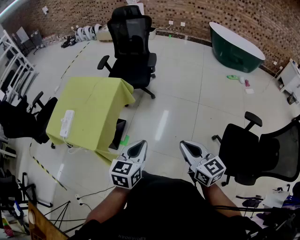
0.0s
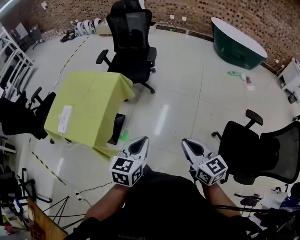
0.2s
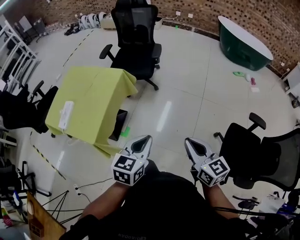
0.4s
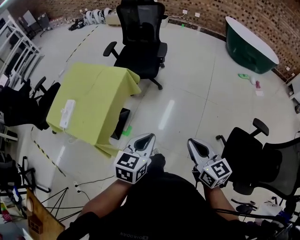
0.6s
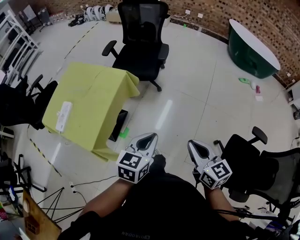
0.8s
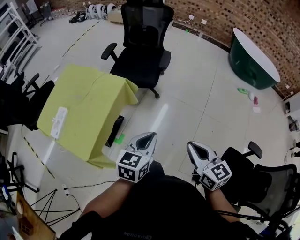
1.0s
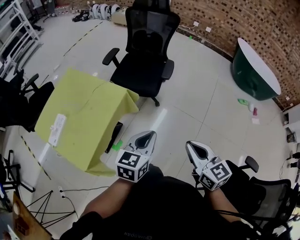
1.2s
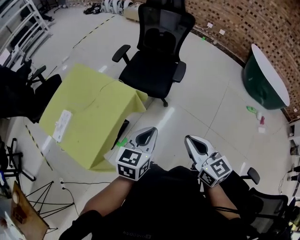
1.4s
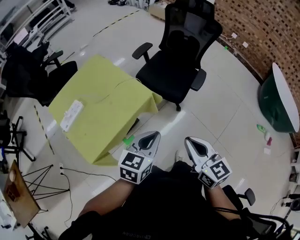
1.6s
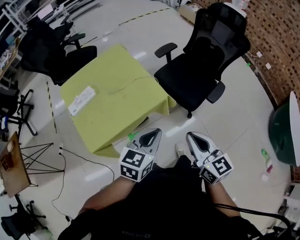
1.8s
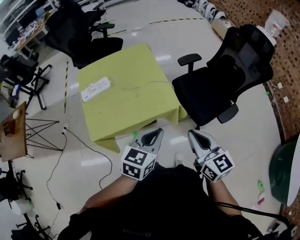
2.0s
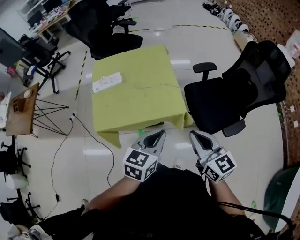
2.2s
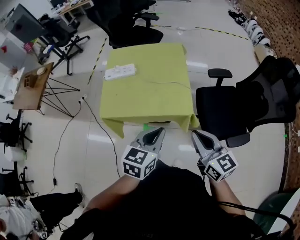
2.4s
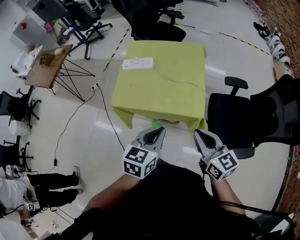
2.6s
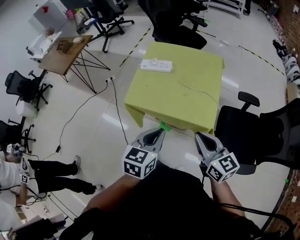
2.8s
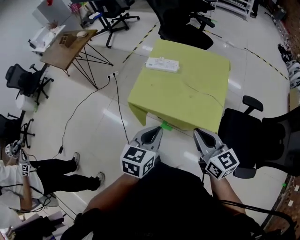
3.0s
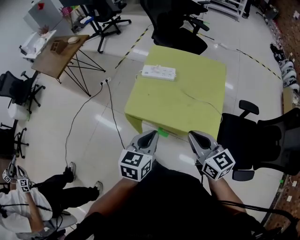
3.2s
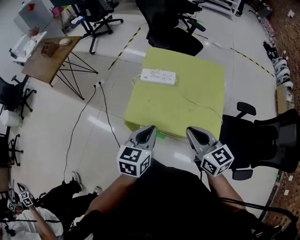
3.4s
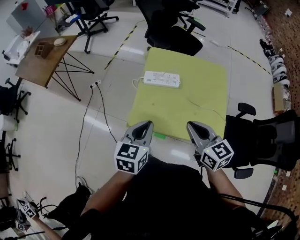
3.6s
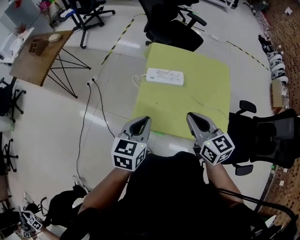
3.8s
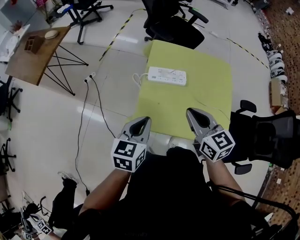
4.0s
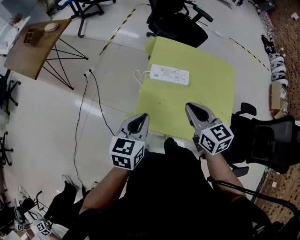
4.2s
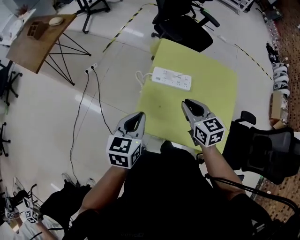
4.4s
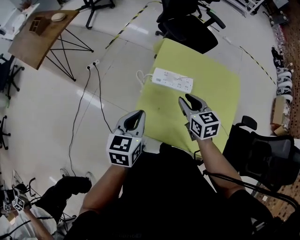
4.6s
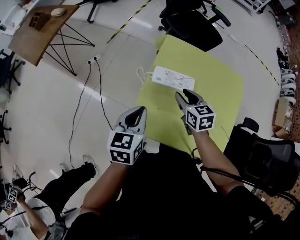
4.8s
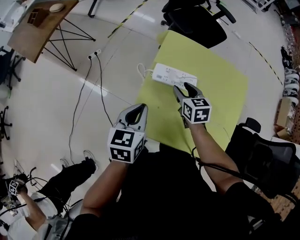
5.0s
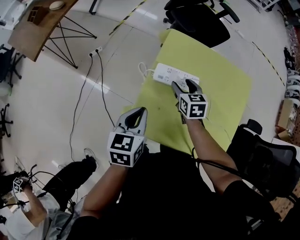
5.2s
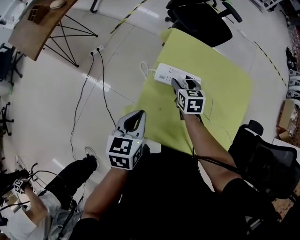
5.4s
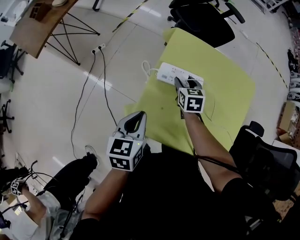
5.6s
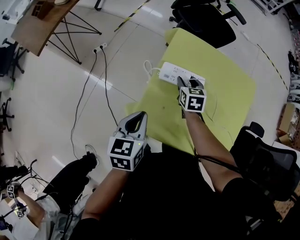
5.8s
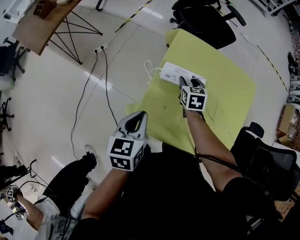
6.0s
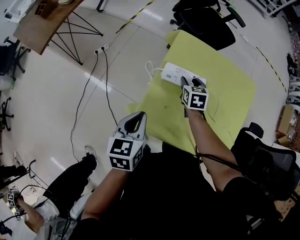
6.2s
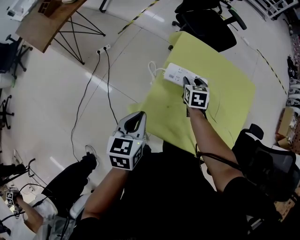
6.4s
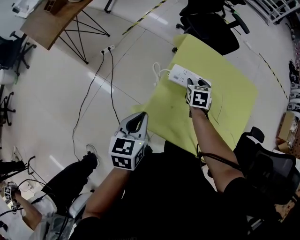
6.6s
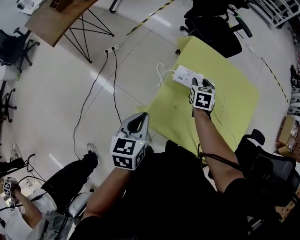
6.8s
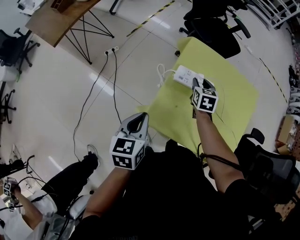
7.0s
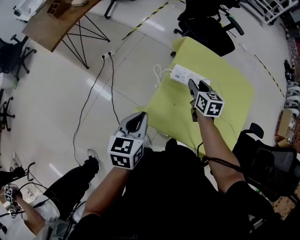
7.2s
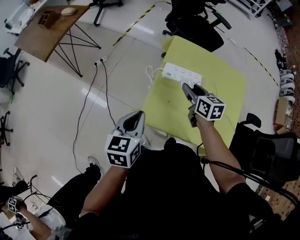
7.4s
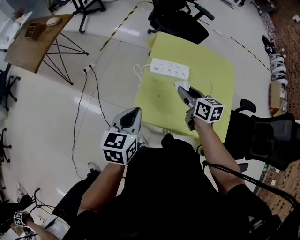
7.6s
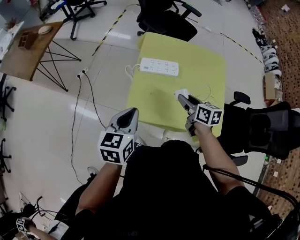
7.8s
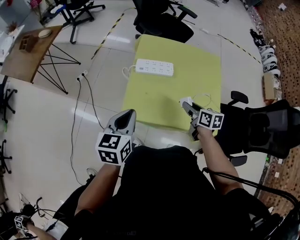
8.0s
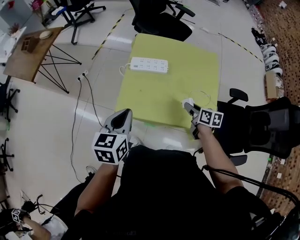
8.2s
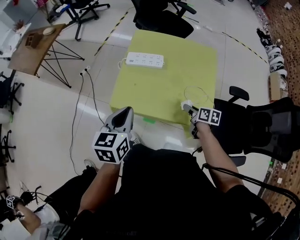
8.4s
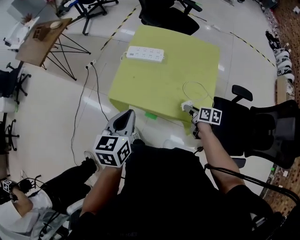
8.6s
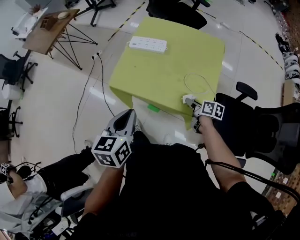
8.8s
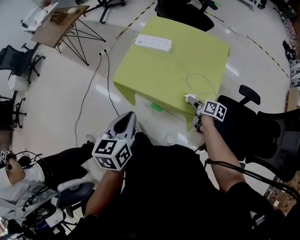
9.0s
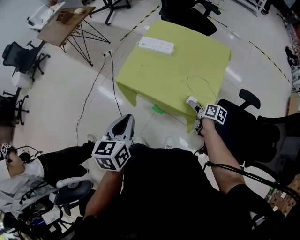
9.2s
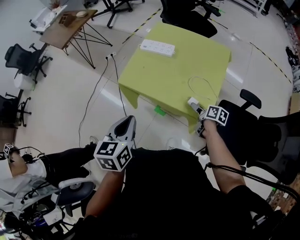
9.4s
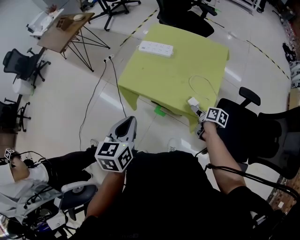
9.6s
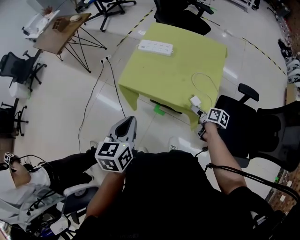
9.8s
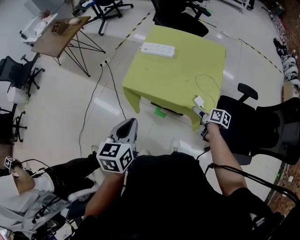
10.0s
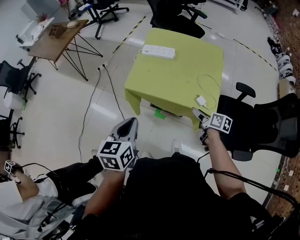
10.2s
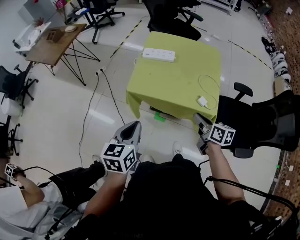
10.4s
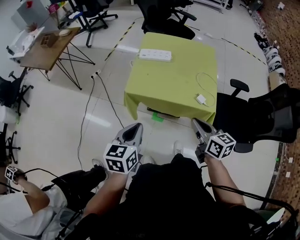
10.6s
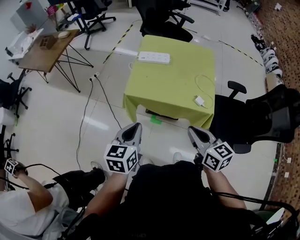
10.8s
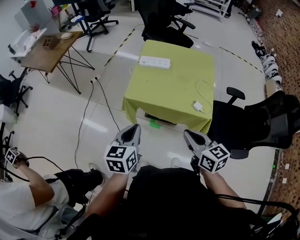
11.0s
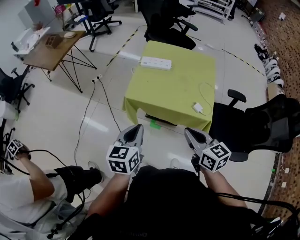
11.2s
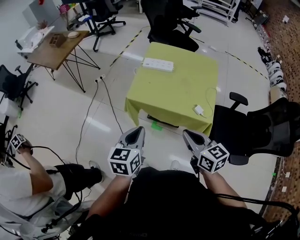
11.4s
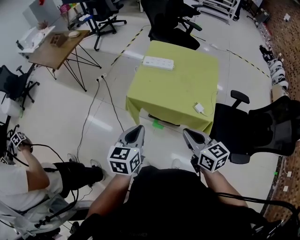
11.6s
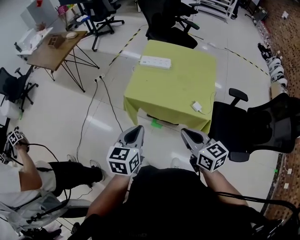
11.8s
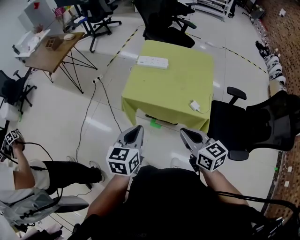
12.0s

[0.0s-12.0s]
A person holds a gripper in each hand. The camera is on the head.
0.0s to 1.6s: The two grippers go about 40 cm forward. The right gripper rotates roughly 30 degrees.
1.6s to 3.0s: The left gripper moves roughly 15 cm, and changes its angle by approximately 70 degrees, while the right gripper ends up roughly 20 cm from where it was, and rotates roughly 70 degrees.
3.0s to 4.4s: The grippers both shift forward and to the left by some 35 cm. The right gripper turns by roughly 20 degrees.
4.4s to 6.0s: The right gripper goes some 20 cm downward and forward, and opens.
6.0s to 7.6s: The right gripper shifts some 20 cm backward and upward, and swivels roughly 30 degrees. Meanwhile the left gripper travels backward by some 5 cm.
7.6s to 9.0s: The right gripper shifts about 35 cm to the right, backward and downward, and turns by roughly 30 degrees. Meanwhile the left gripper is displaced backward and to the right by approximately 25 cm.
9.0s to 10.4s: The left gripper goes about 10 cm to the left. The right gripper shifts some 25 cm upward, to the left and backward, and closes.
10.4s to 12.0s: The right gripper heads upward, backward and to the left, covering roughly 15 cm, and changes its angle by approximately 30 degrees.

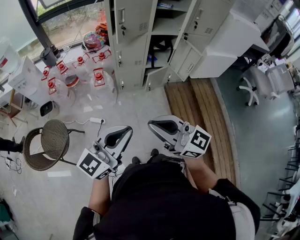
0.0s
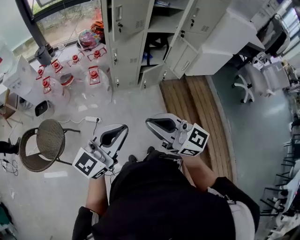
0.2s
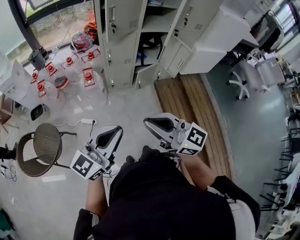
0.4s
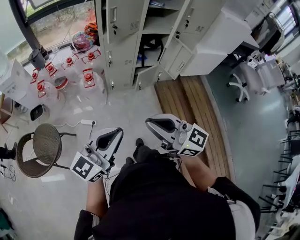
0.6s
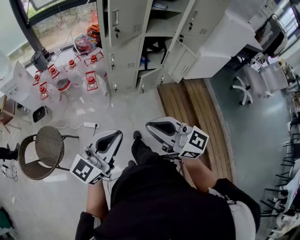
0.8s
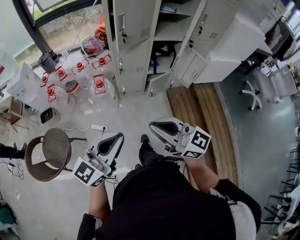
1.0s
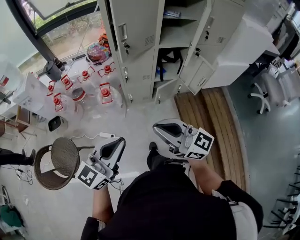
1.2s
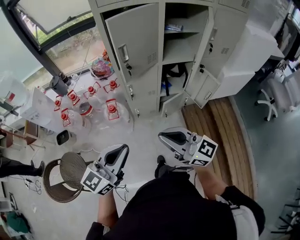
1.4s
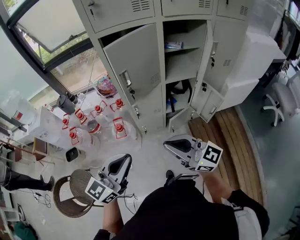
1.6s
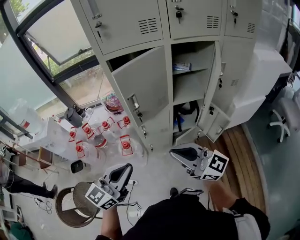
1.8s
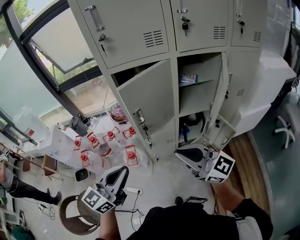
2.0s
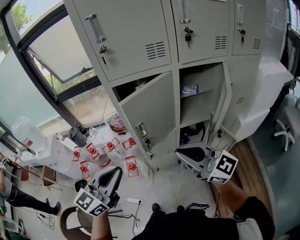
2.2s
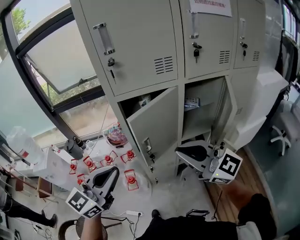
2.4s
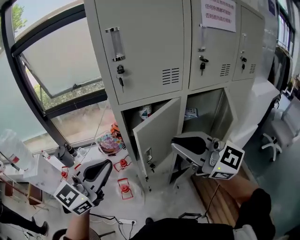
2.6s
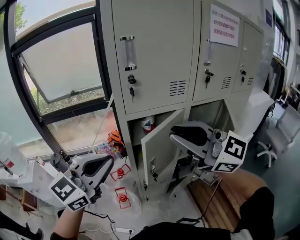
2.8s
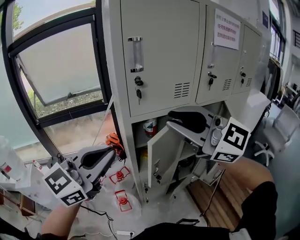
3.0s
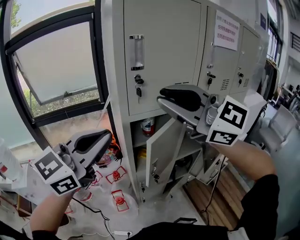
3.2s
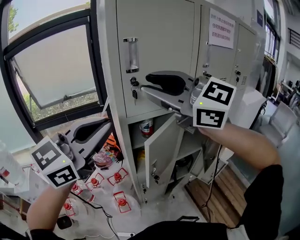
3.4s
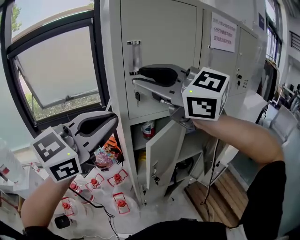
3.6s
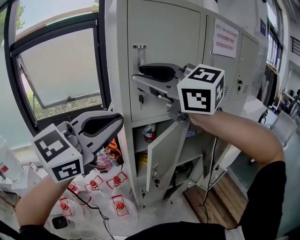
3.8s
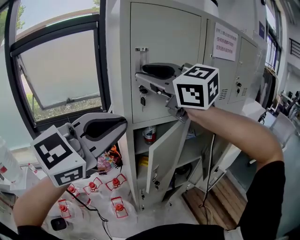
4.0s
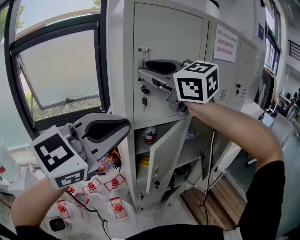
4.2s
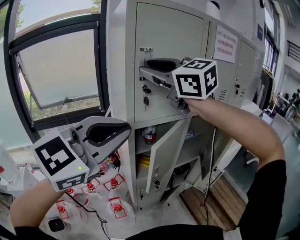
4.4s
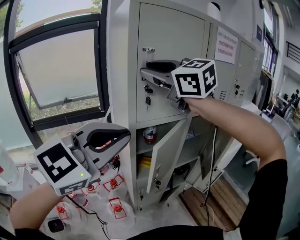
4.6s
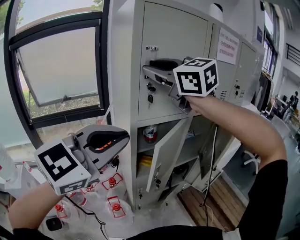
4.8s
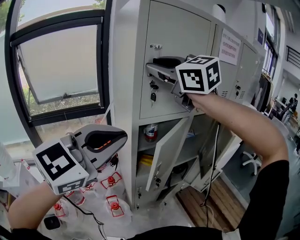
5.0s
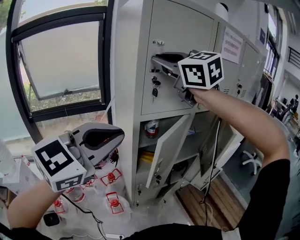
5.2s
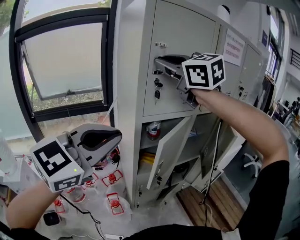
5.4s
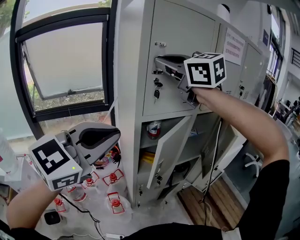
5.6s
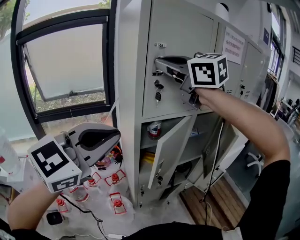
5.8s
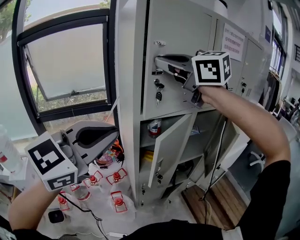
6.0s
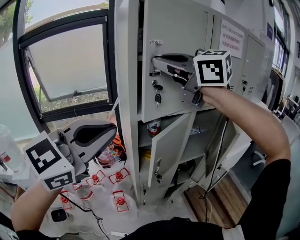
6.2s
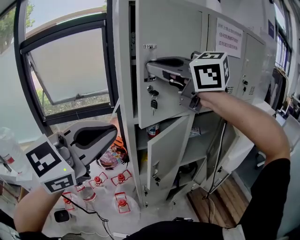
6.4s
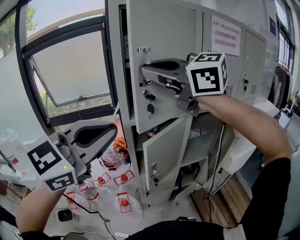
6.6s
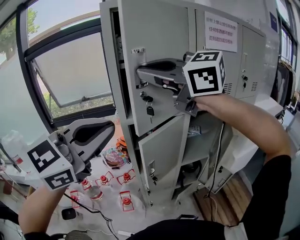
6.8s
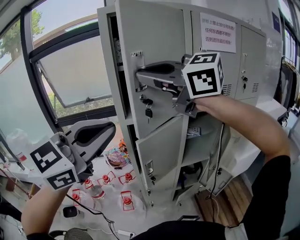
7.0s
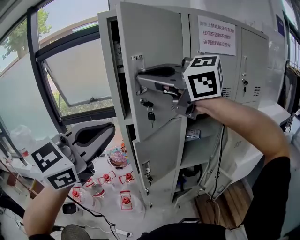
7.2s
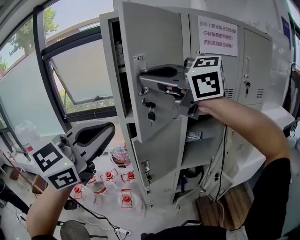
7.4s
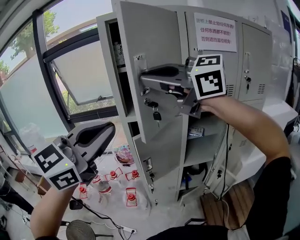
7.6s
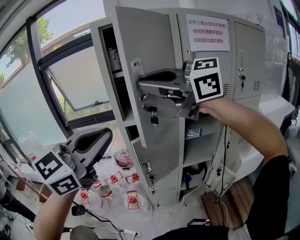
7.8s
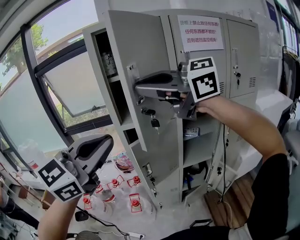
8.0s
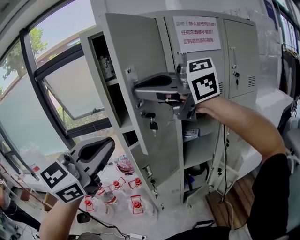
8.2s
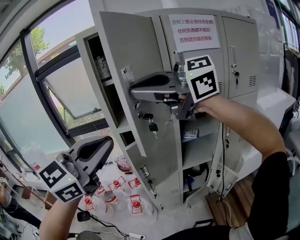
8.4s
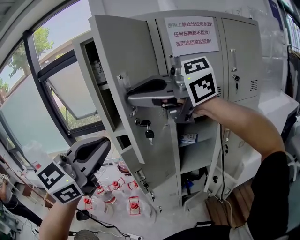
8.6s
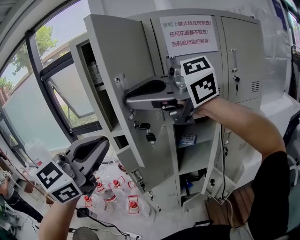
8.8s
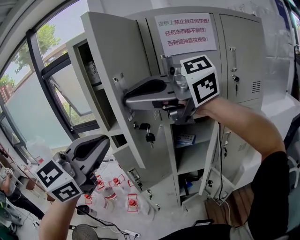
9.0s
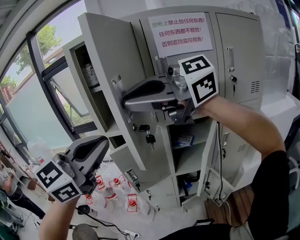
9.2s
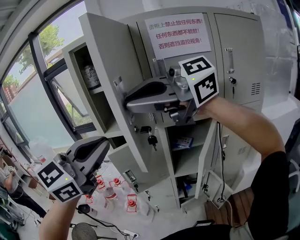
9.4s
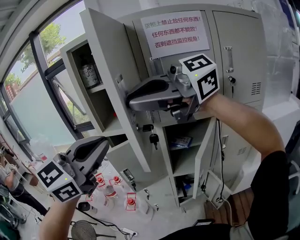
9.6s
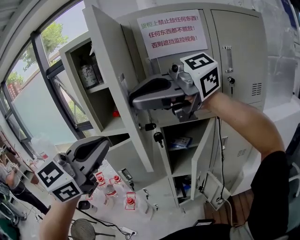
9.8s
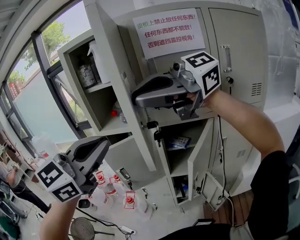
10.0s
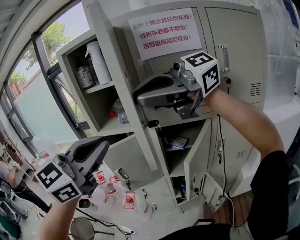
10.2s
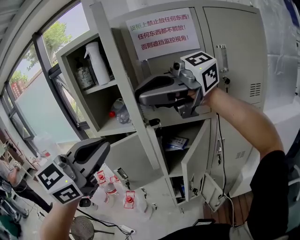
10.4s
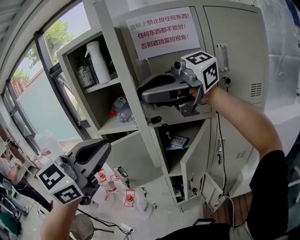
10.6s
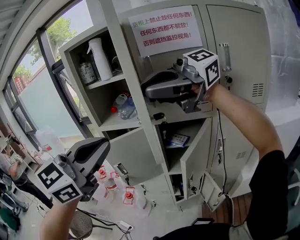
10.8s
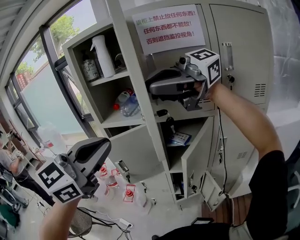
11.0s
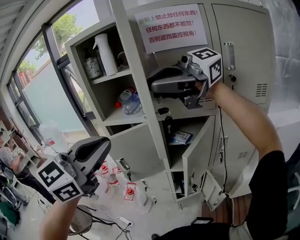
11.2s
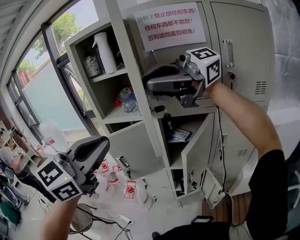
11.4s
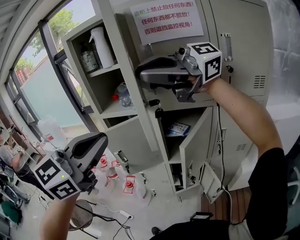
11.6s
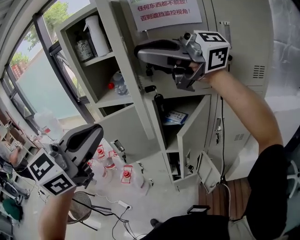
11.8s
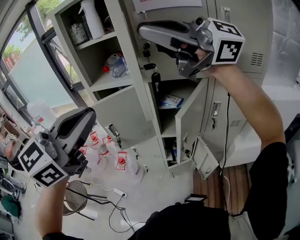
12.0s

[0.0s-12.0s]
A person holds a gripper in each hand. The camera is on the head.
0.0s to 1.6s: Both grippers move forward, some 25 cm.
1.6s to 3.0s: The left gripper is displaced forward and upward by some 40 cm; the right gripper is displaced upward and forward by roughly 40 cm, and rotates some 30 degrees.
3.0s to 4.4s: The right gripper is displaced forward, upward and to the left by roughly 20 cm, while the left gripper goes roughly 10 cm upward.
4.4s to 6.0s: The left gripper ends up approximately 5 cm from where it was, while the right gripper closes up.
6.0s to 7.6s: The left gripper changes place by about 15 cm; the right gripper shifts by roughly 15 cm, and changes its angle by approximately 30 degrees.
7.6s to 9.0s: The left gripper moves roughly 10 cm. The right gripper moves approximately 10 cm, and turns by some 30 degrees.
9.0s to 10.4s: The right gripper shifts by about 15 cm, and turns by roughly 20 degrees; the left gripper shifts by about 10 cm.
10.4s to 12.0s: The left gripper ends up approximately 5 cm from where it was, while the right gripper turns by roughly 30 degrees.
